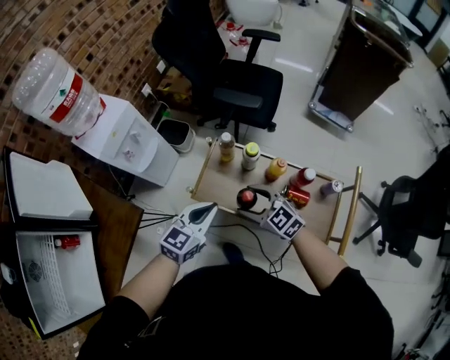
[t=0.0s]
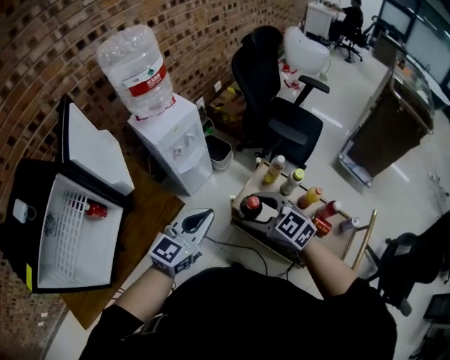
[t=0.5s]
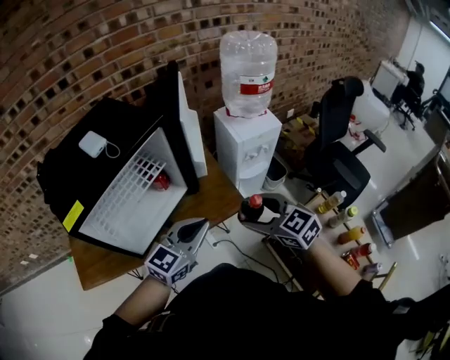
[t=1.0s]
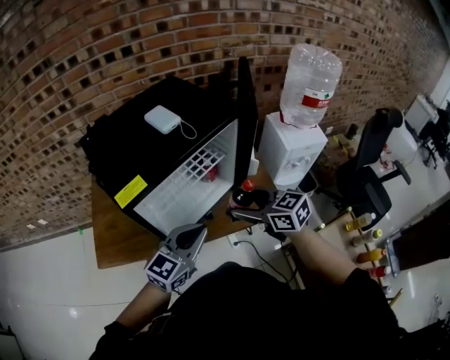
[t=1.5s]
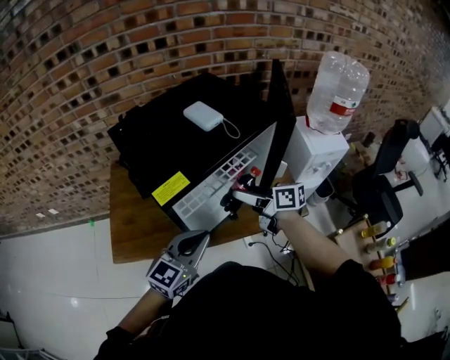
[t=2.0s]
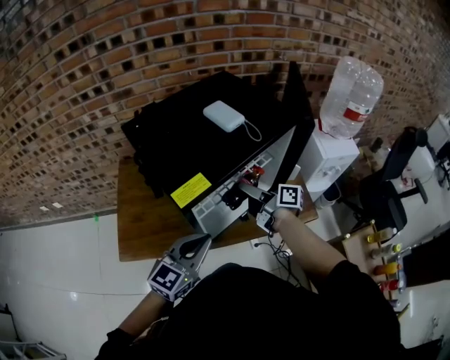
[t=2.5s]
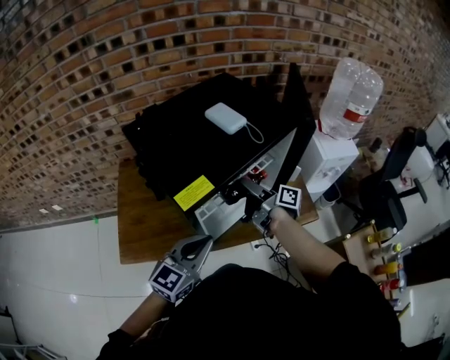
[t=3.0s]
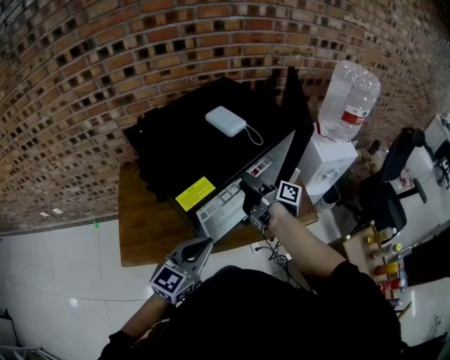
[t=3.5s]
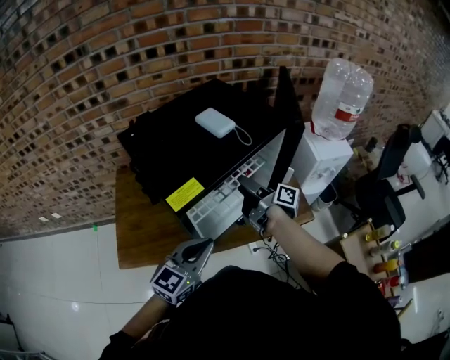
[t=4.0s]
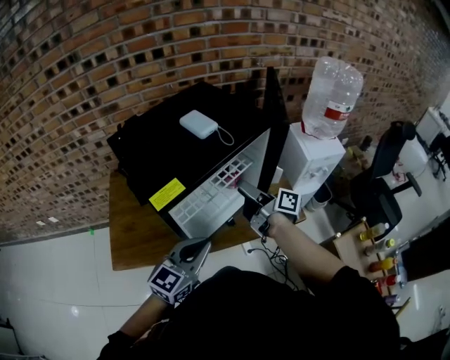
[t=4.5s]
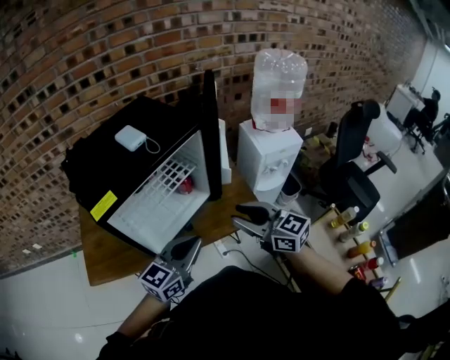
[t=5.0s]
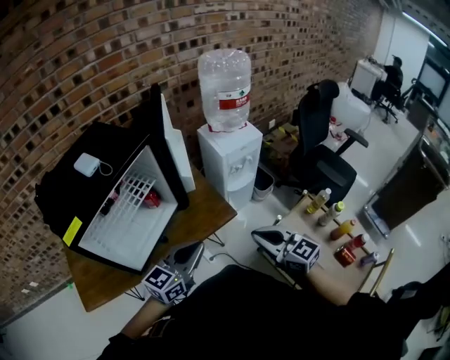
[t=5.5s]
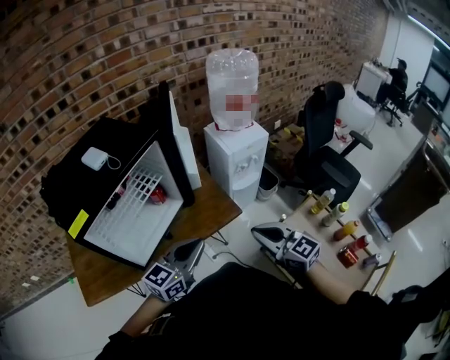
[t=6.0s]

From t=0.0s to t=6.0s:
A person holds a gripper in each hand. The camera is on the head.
From t=0.0s to t=2.0s: Both grippers are carried about 80 cm. The right gripper changes its angle by approximately 60 degrees, while the left gripper turns by roughly 60 degrees.
From t=2.0s to t=4.0s: The right gripper turns by some 40 degrees.
From t=4.0s to t=6.0s: The left gripper travels to the right by about 30 cm, and swivels about 20 degrees. The right gripper heads to the right and backward, covering some 40 cm, rotates around the line of its fingers by some 80 degrees, counterclockwise from behind, and closes.

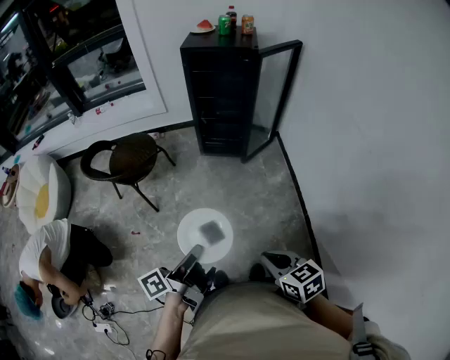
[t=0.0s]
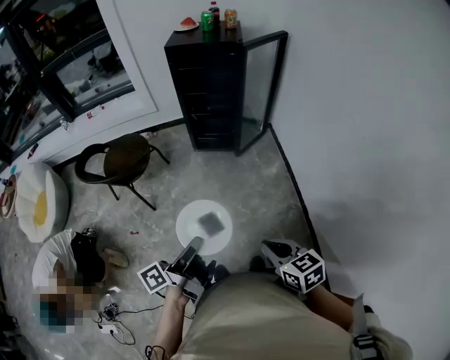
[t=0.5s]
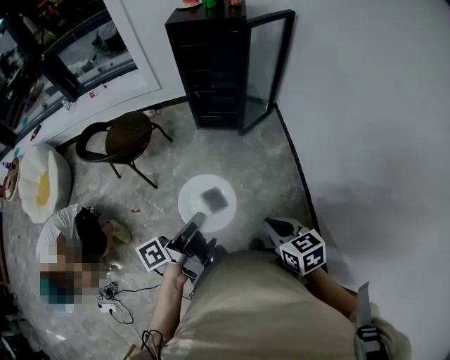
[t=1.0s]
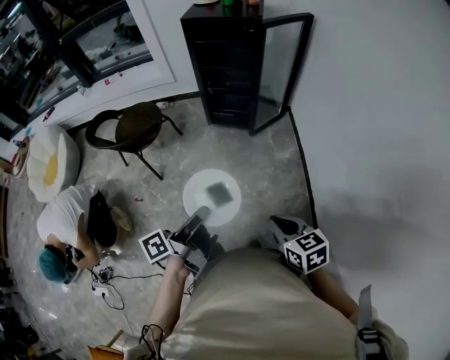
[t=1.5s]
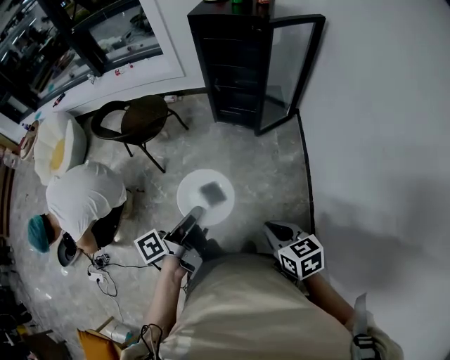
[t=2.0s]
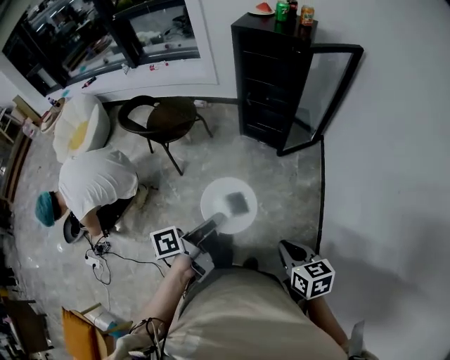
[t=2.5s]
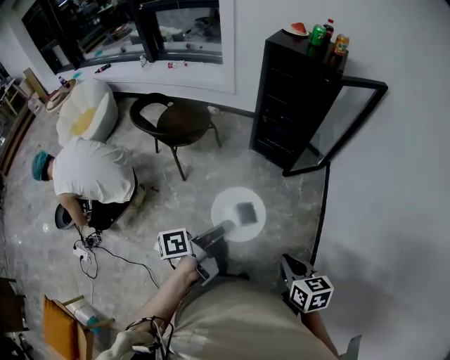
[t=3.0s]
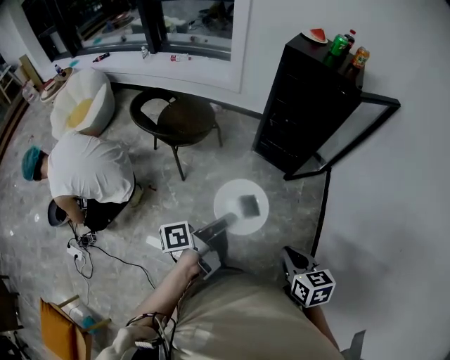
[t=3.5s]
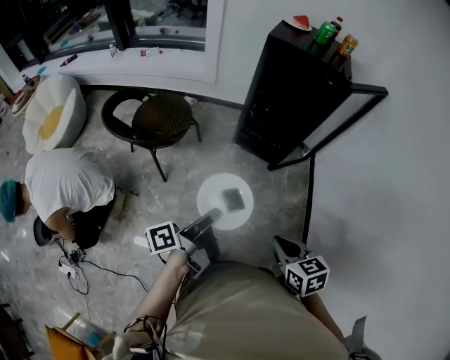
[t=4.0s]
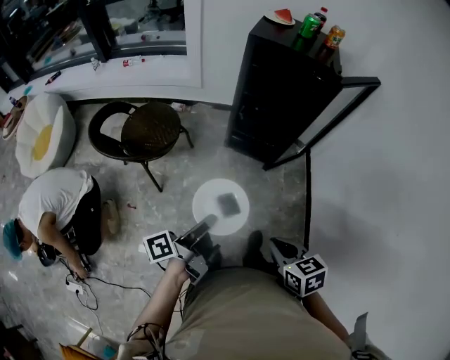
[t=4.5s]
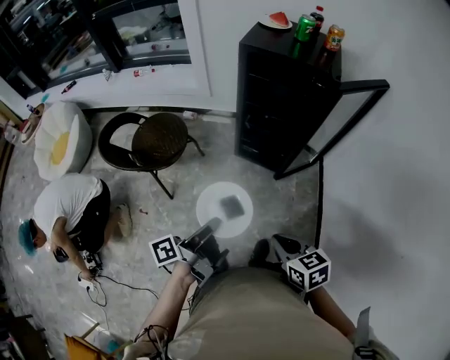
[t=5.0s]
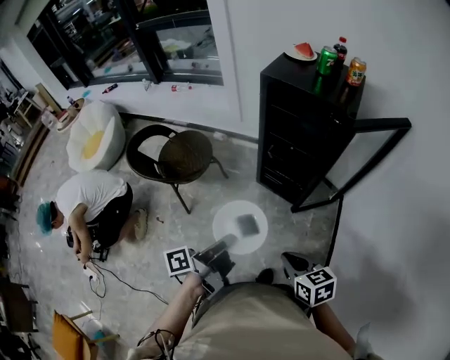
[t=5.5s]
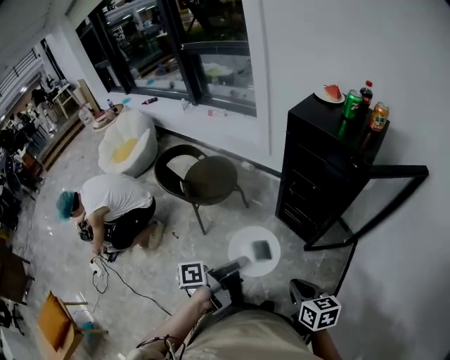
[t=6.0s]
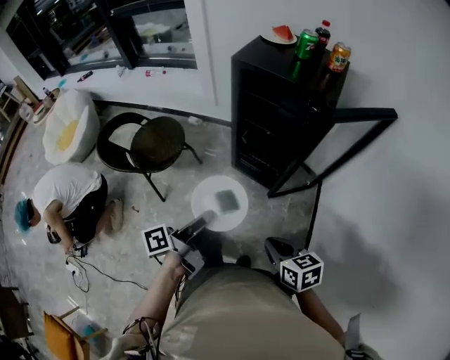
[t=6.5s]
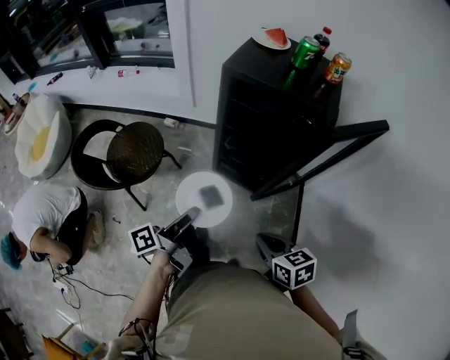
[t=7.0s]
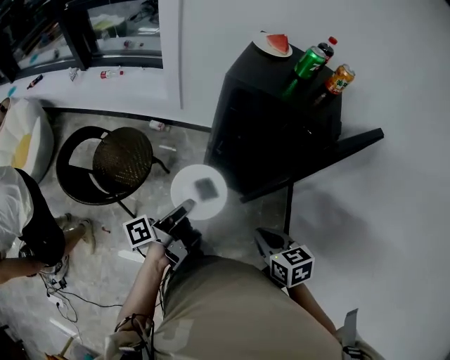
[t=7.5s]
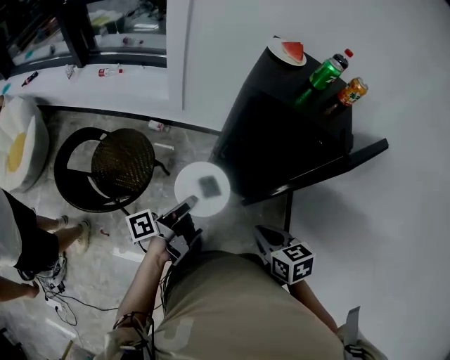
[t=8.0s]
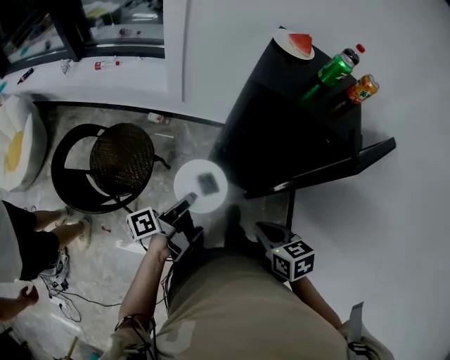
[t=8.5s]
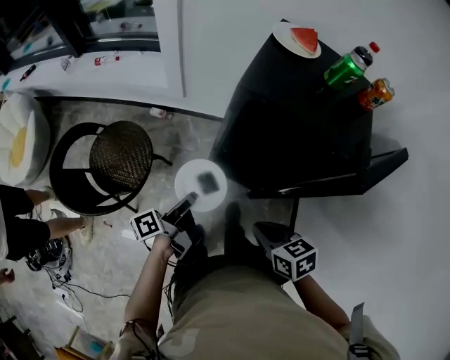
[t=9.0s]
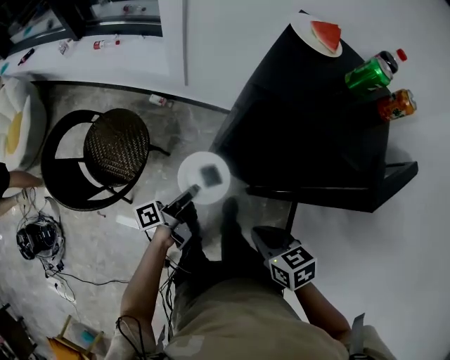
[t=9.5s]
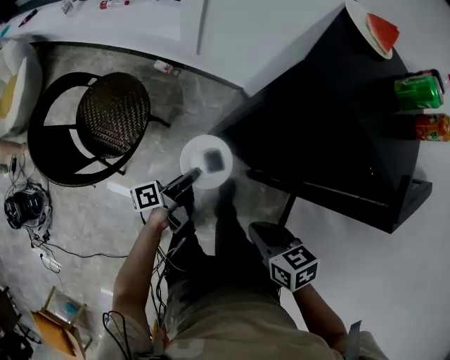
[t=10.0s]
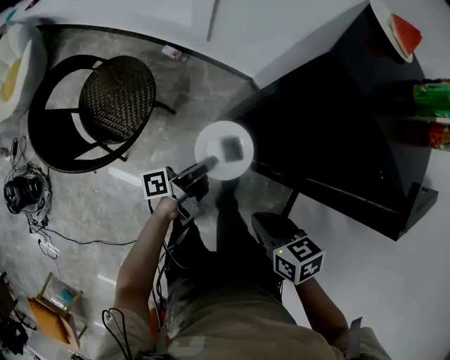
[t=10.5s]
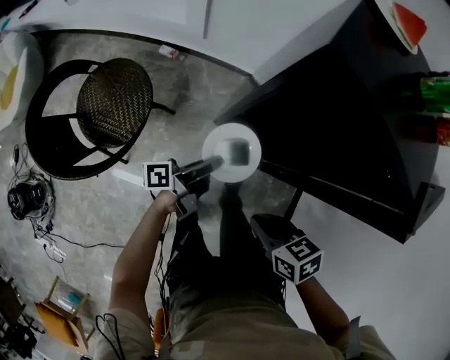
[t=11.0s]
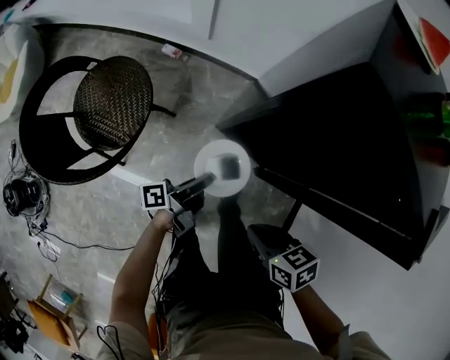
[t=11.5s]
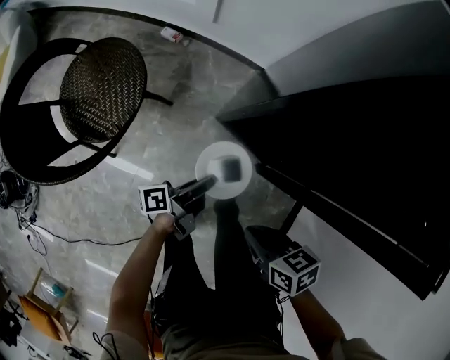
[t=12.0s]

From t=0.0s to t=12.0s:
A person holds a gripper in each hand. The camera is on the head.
From t=0.0s to t=2.0s: The right gripper moves roughly 10 cm.
From t=2.0s to t=4.0s: The right gripper changes place by approximately 20 cm.
From t=4.0s to t=6.0s: The right gripper moves some 20 cm.
From t=6.0s to t=8.0s: The right gripper shifts by approximately 20 cm.
From t=8.0s to t=10.0s: The right gripper travels downward by roughly 10 cm, and turns by about 20 degrees.
From t=10.0s to t=12.0s: The right gripper travels downward by about 15 cm.

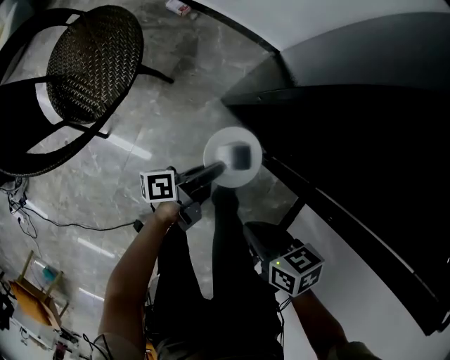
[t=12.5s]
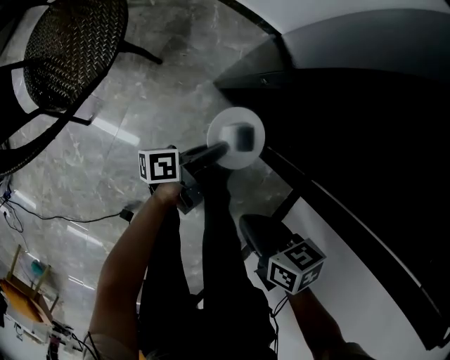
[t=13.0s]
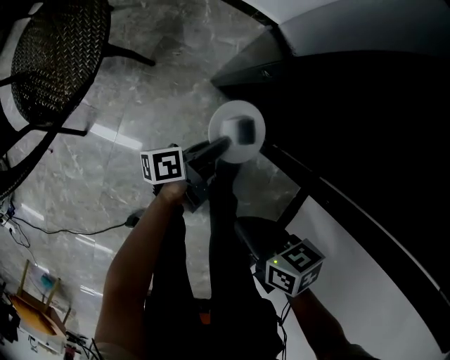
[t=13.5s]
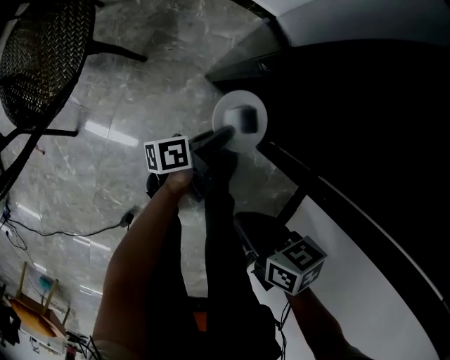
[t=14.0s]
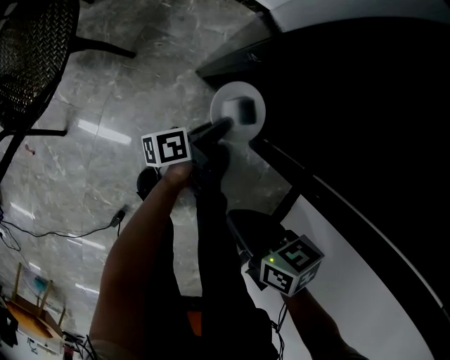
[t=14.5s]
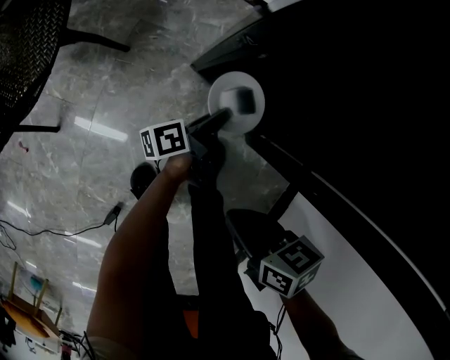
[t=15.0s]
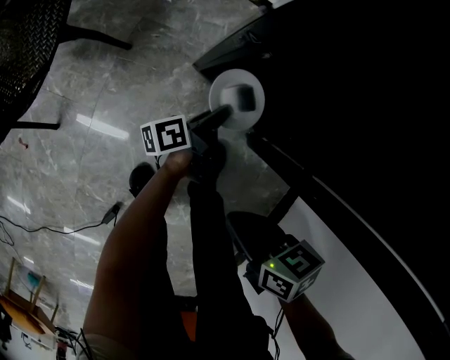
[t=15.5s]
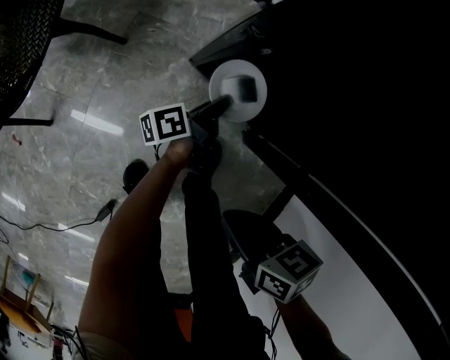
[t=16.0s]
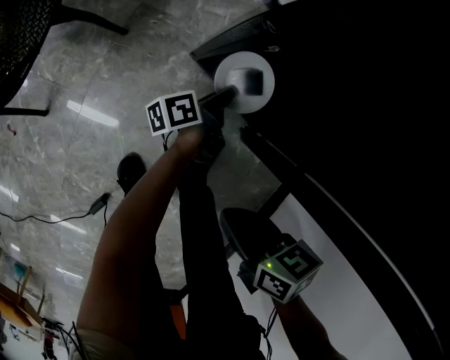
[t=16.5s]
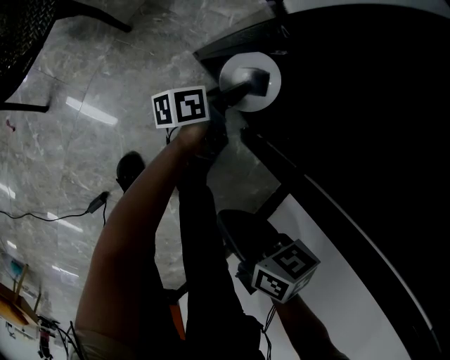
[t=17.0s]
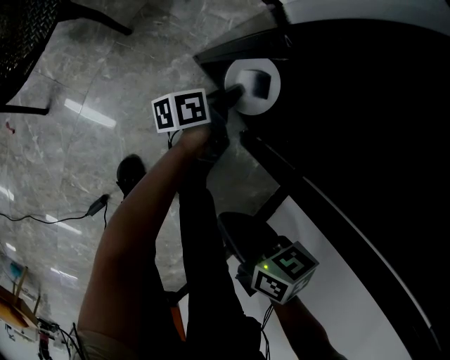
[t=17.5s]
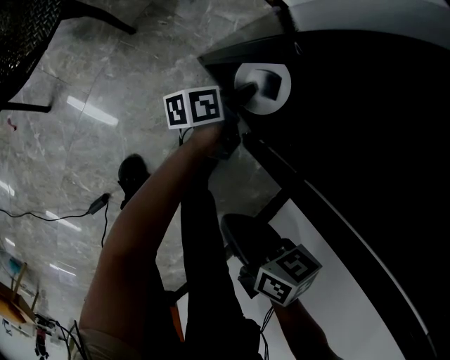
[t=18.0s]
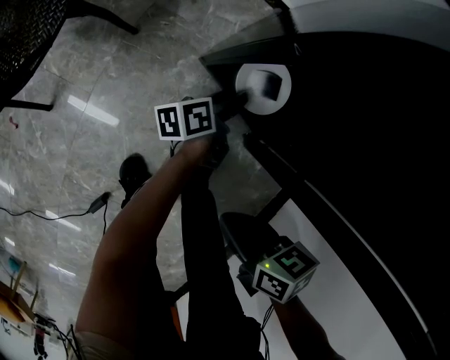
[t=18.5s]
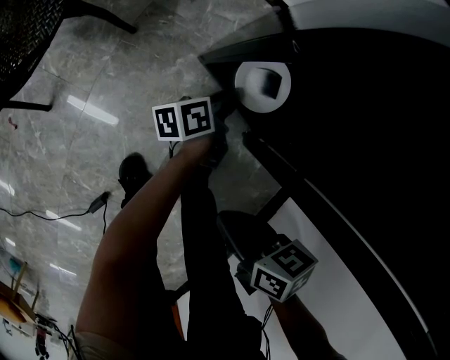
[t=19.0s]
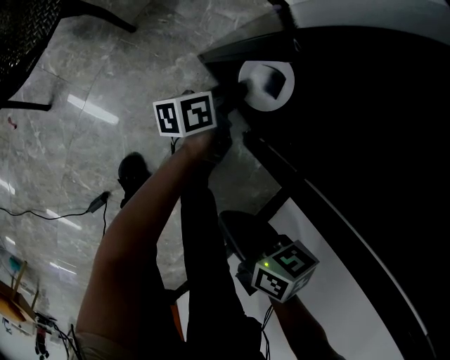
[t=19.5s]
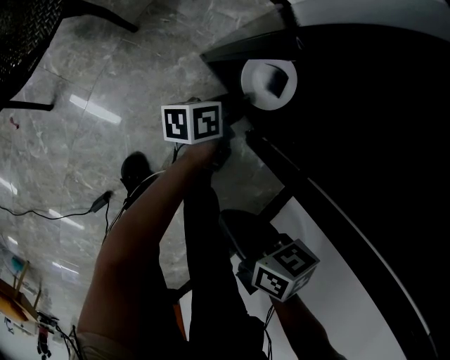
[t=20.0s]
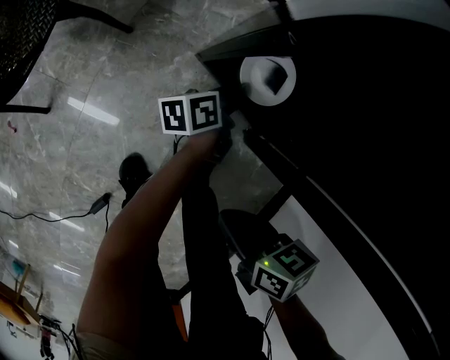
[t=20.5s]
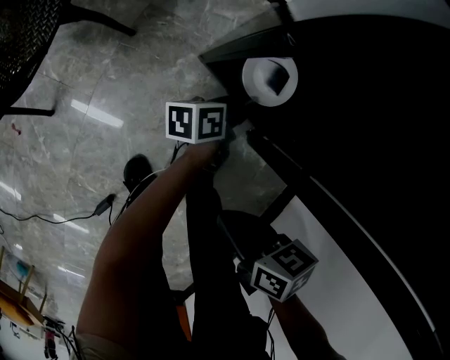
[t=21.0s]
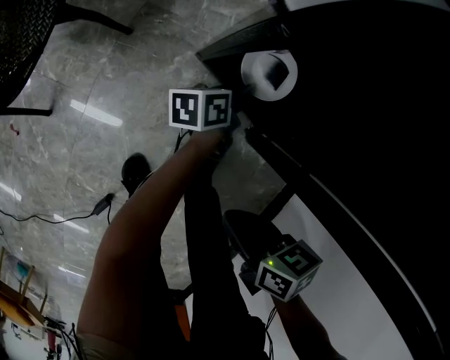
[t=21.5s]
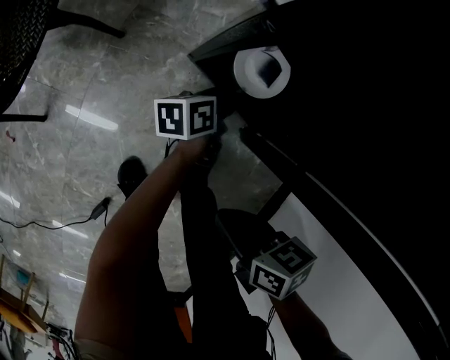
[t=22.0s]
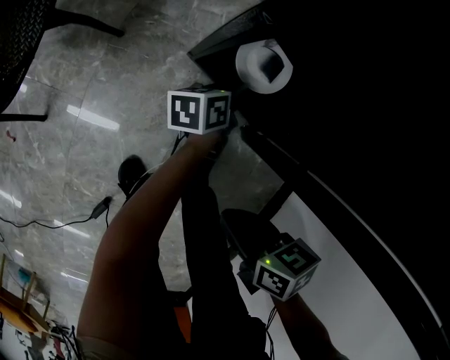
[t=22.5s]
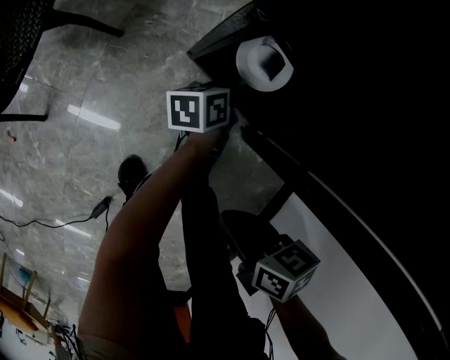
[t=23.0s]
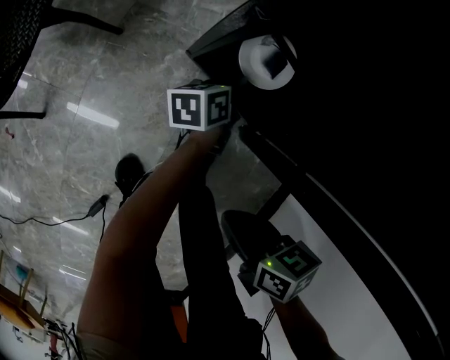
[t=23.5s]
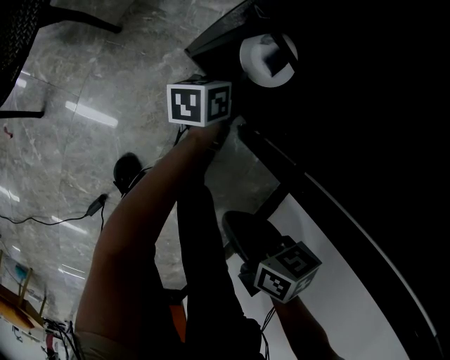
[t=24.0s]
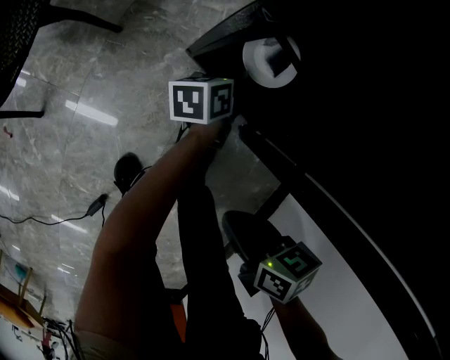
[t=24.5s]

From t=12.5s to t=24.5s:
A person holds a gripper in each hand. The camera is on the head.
From t=12.5s to t=14.5s: The right gripper goes approximately 10 cm downward.
